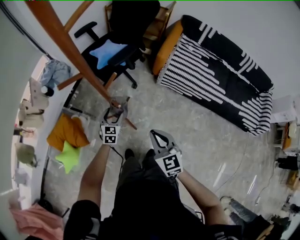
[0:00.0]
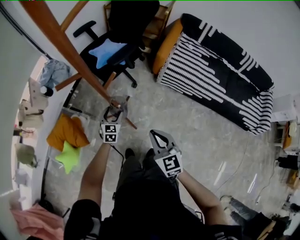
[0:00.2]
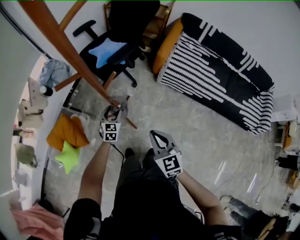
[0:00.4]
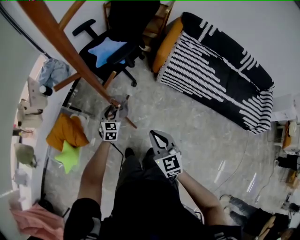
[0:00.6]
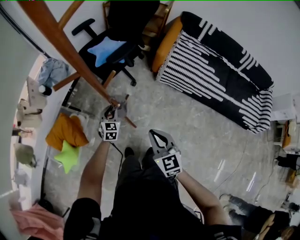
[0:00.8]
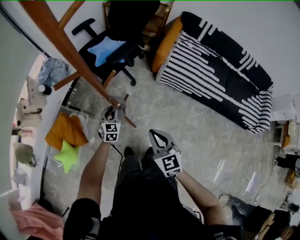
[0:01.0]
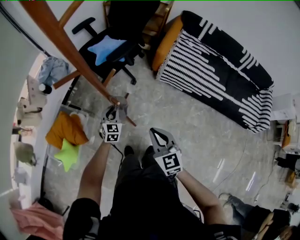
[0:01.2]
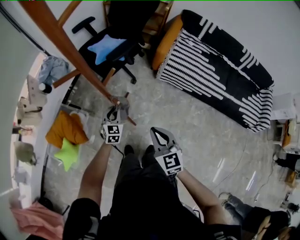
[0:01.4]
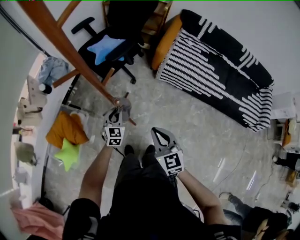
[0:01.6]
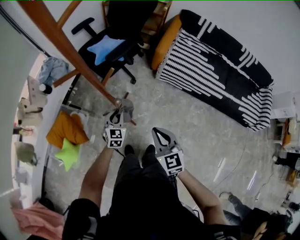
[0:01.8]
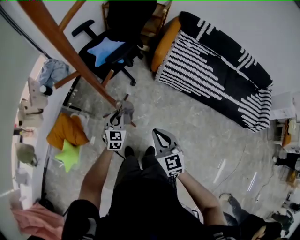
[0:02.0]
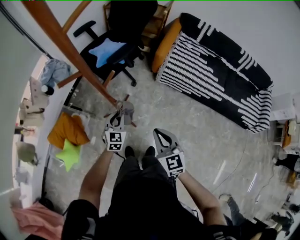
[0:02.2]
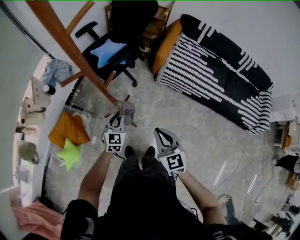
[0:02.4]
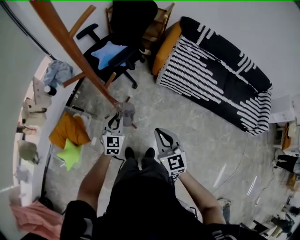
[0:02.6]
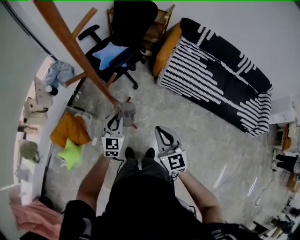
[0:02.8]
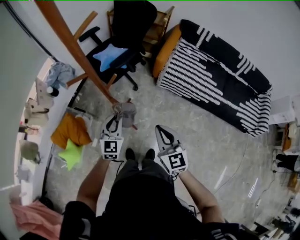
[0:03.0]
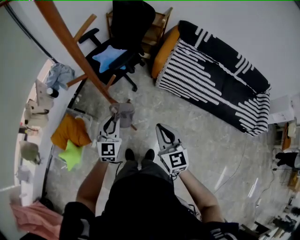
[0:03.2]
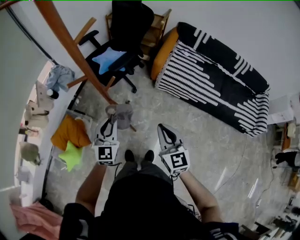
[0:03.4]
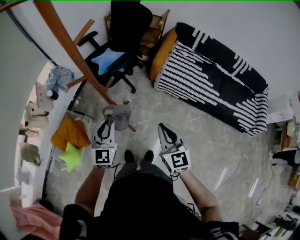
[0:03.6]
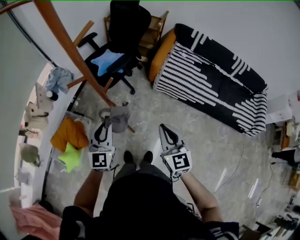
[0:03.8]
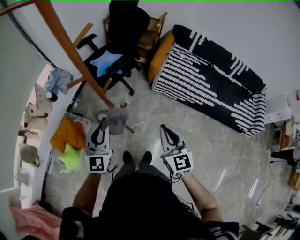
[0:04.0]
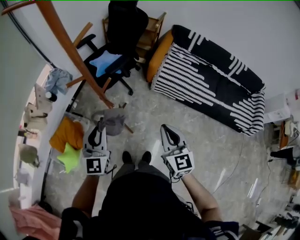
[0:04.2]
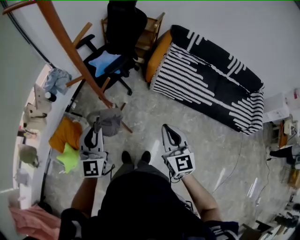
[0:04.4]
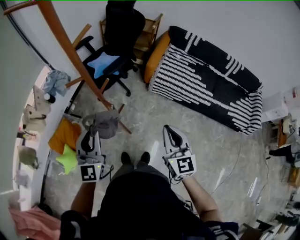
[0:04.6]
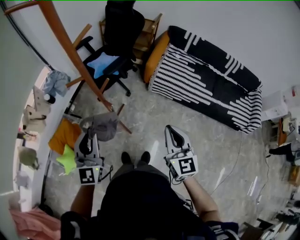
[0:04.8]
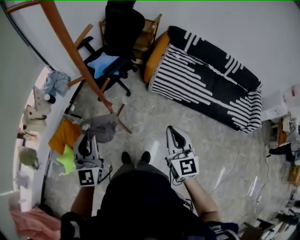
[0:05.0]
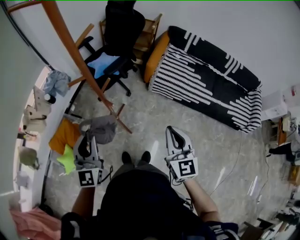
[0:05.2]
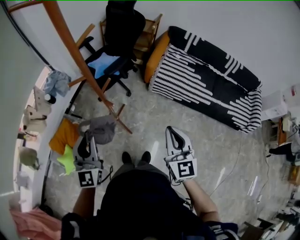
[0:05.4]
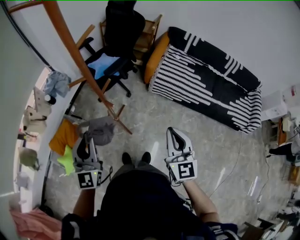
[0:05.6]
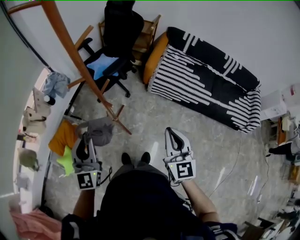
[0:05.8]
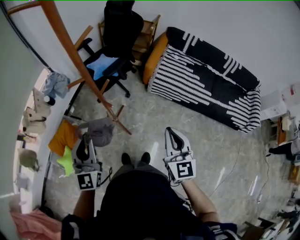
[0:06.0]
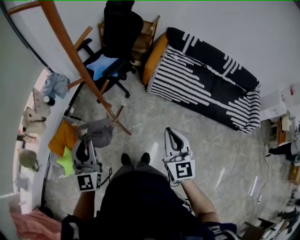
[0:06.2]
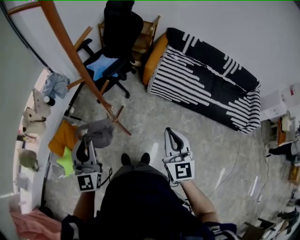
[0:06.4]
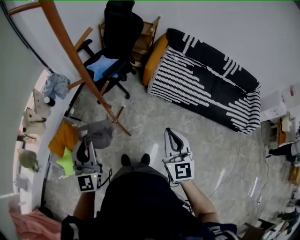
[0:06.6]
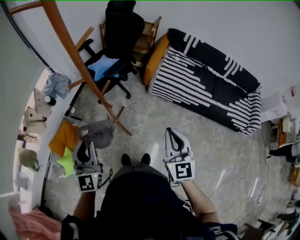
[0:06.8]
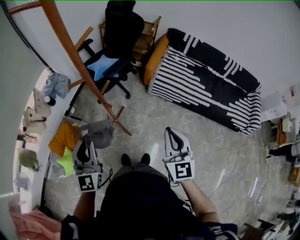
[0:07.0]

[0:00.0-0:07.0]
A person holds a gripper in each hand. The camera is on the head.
0:00.0 to 0:01.4: The left gripper closes.
0:01.4 to 0:02.8: The left gripper goes some 20 cm upward and backward; the right gripper shifts roughly 10 cm upward.
0:02.8 to 0:04.2: The left gripper travels upward by approximately 20 cm. Meanwhile the right gripper goes approximately 10 cm upward and to the right.
0:04.2 to 0:05.6: The left gripper moves to the left and backward, approximately 5 cm. The right gripper shifts roughly 5 cm upward.
0:05.6 to 0:07.0: The two grippers keep their place.

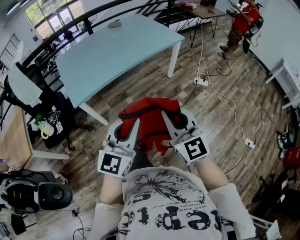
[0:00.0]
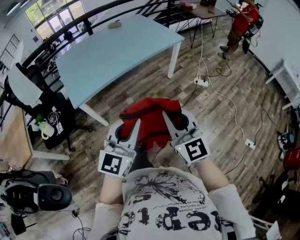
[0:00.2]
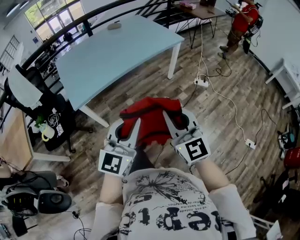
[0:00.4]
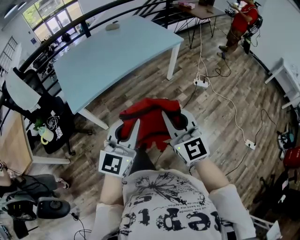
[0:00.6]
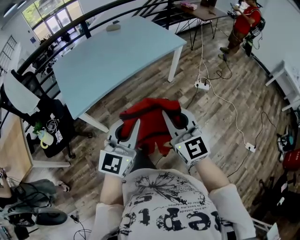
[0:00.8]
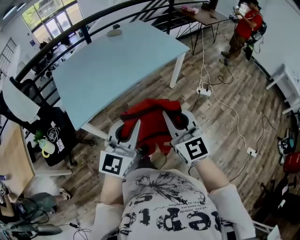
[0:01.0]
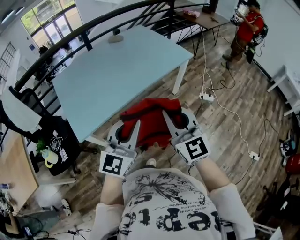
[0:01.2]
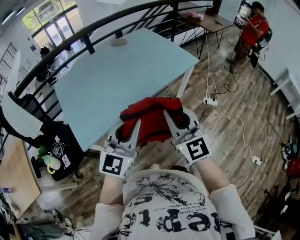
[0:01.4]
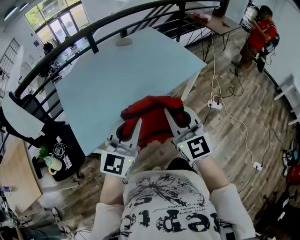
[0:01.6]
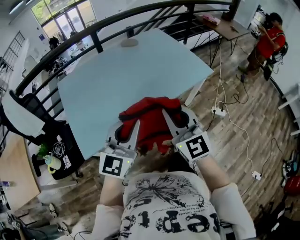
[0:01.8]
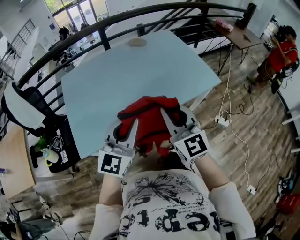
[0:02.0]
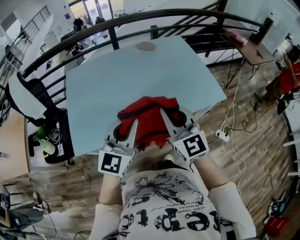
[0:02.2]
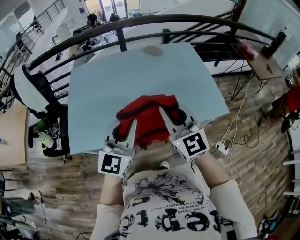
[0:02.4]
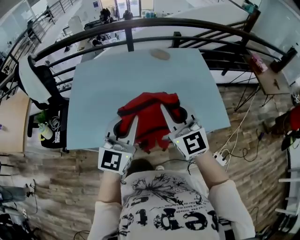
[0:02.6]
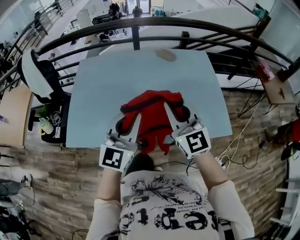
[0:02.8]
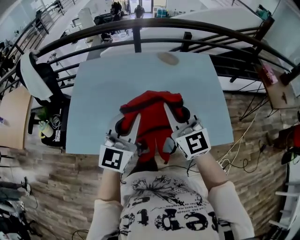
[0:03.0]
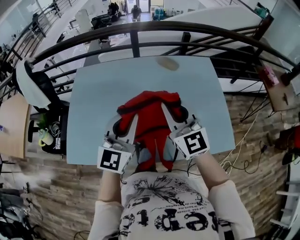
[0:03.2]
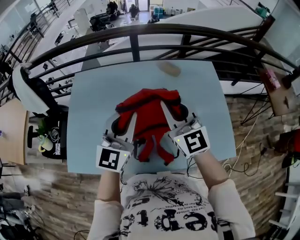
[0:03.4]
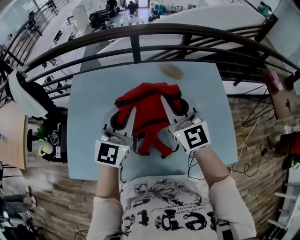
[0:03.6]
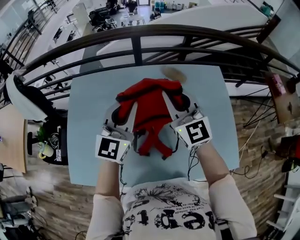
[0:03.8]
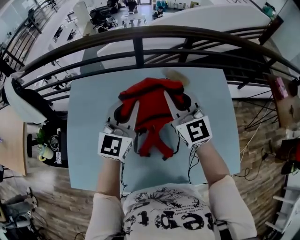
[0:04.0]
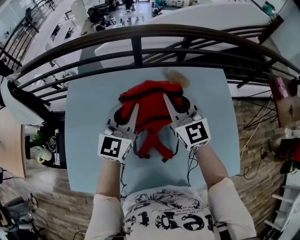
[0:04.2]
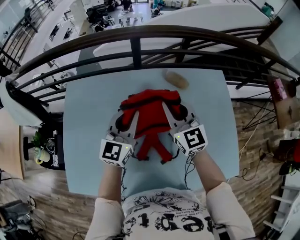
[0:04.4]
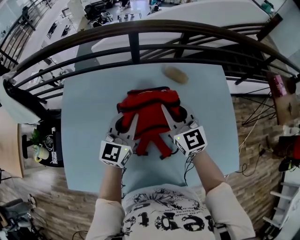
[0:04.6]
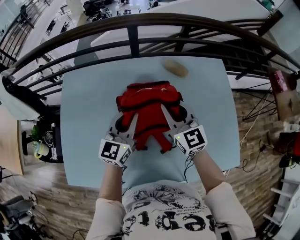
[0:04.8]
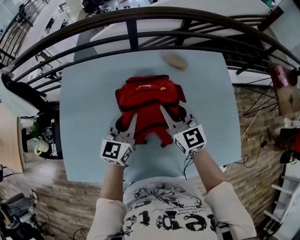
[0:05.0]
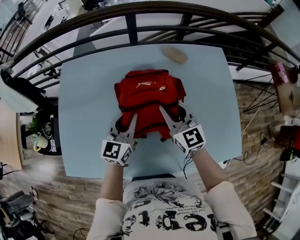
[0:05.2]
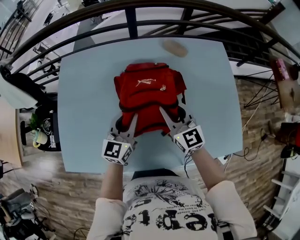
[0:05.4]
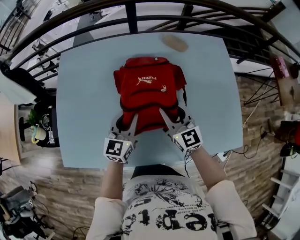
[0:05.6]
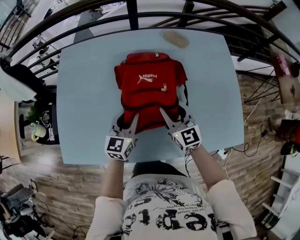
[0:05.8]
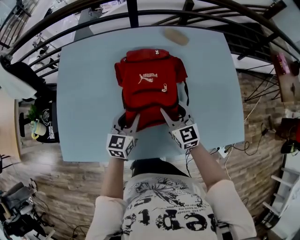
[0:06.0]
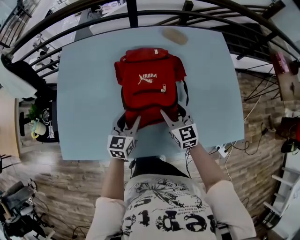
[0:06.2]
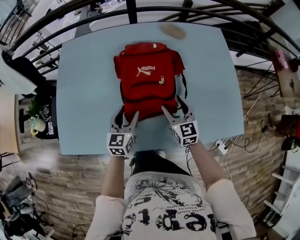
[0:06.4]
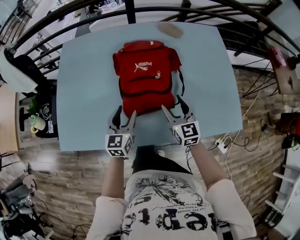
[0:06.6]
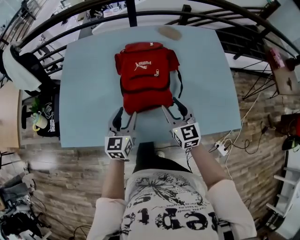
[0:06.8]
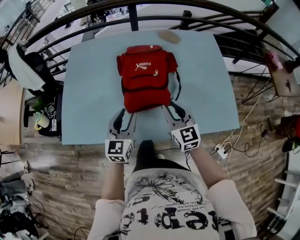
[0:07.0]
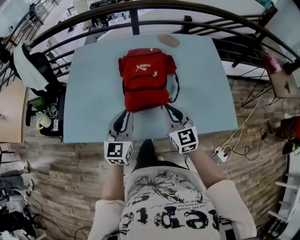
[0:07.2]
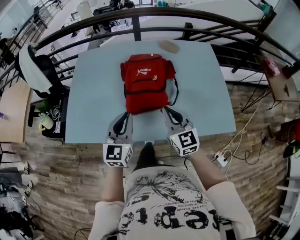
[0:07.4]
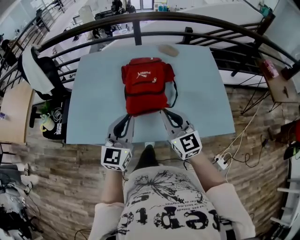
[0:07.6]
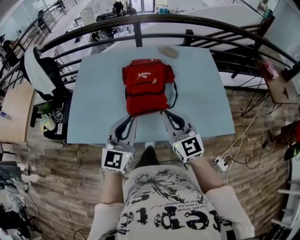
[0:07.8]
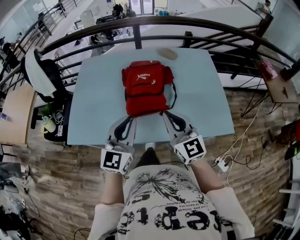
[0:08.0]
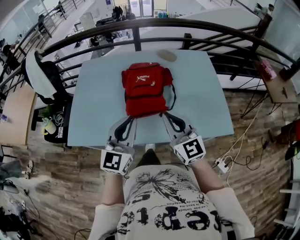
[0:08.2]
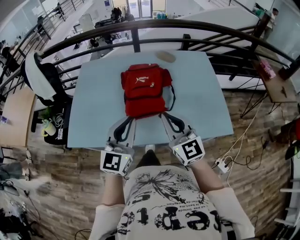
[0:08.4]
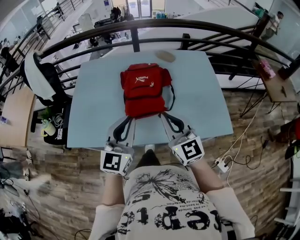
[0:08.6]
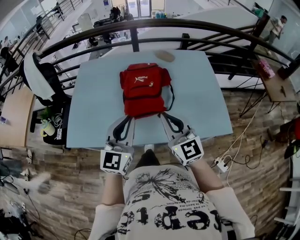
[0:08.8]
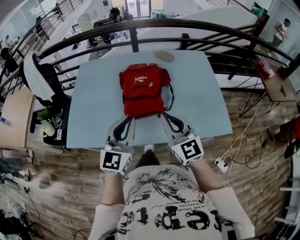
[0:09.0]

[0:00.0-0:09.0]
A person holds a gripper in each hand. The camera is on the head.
0:00.0 to 0:01.6: The grippers both shift forward by some 35 cm.
0:01.6 to 0:03.0: The right gripper moves some 40 cm, and swivels about 30 degrees. The left gripper shifts by roughly 35 cm, and rotates some 30 degrees.
0:03.0 to 0:04.4: Both grippers move forward, about 35 cm.
0:04.4 to 0:06.0: The two grippers go roughly 30 cm downward and backward. The right gripper opens its fingers; the left gripper rotates about 20 degrees.
0:06.0 to 0:07.6: The two grippers go some 30 cm backward and upward. The right gripper closes. Meanwhile the left gripper turns by roughly 20 degrees, and closes up.
0:07.6 to 0:09.0: The left gripper travels upward by approximately 5 cm. Meanwhile the right gripper shifts by some 5 cm.

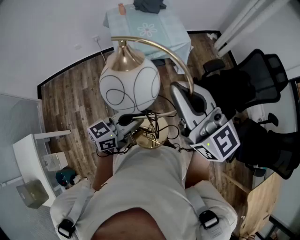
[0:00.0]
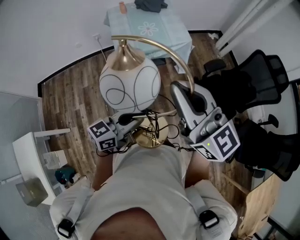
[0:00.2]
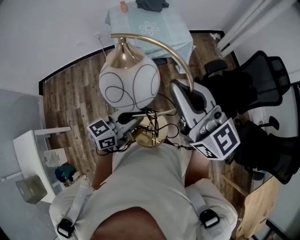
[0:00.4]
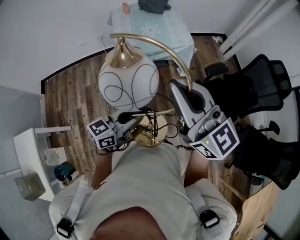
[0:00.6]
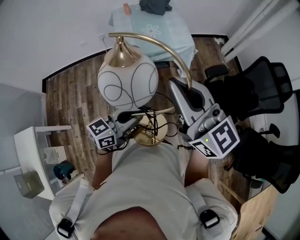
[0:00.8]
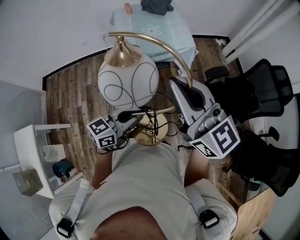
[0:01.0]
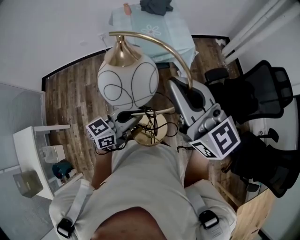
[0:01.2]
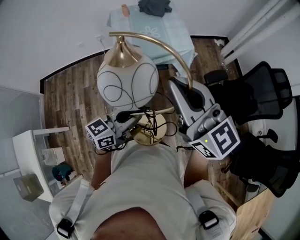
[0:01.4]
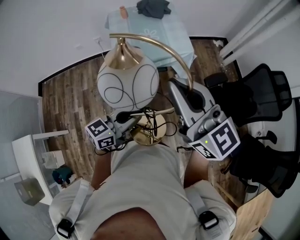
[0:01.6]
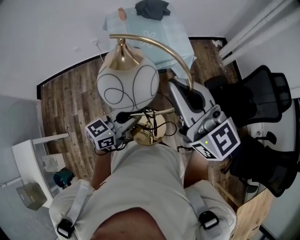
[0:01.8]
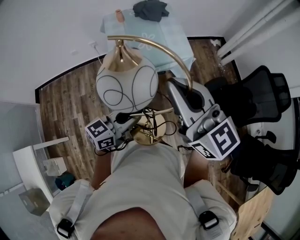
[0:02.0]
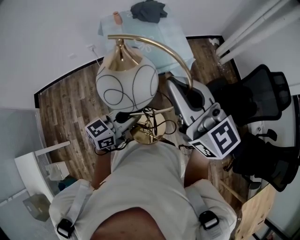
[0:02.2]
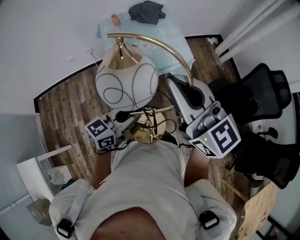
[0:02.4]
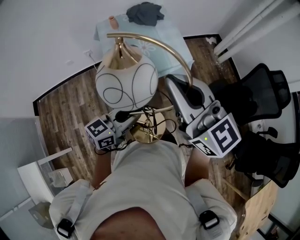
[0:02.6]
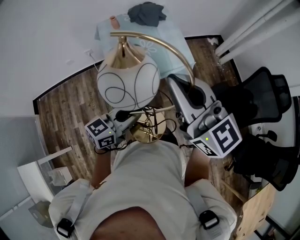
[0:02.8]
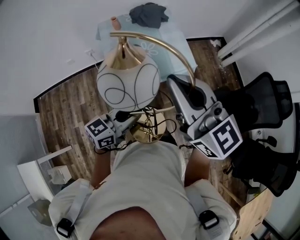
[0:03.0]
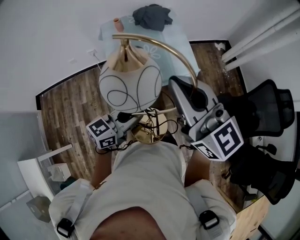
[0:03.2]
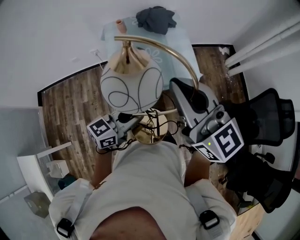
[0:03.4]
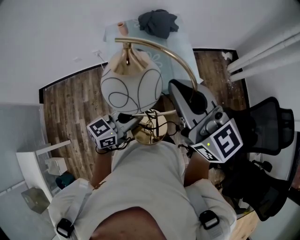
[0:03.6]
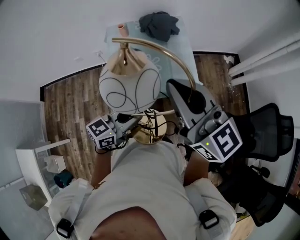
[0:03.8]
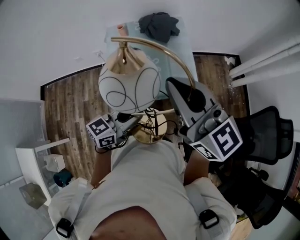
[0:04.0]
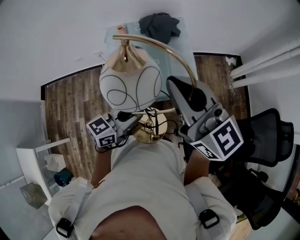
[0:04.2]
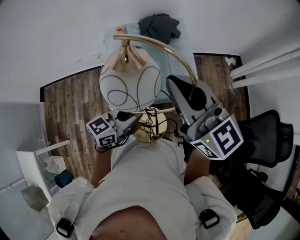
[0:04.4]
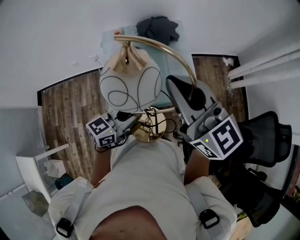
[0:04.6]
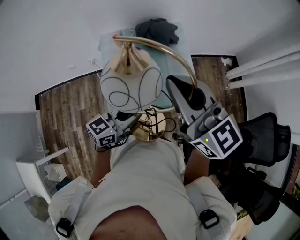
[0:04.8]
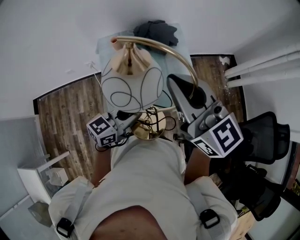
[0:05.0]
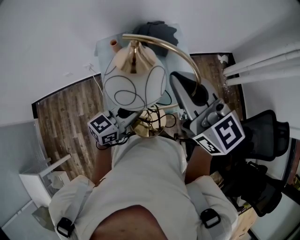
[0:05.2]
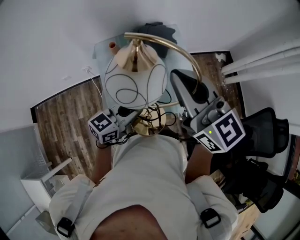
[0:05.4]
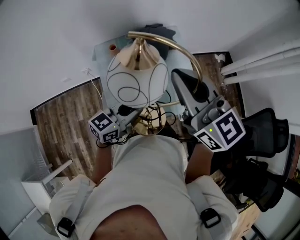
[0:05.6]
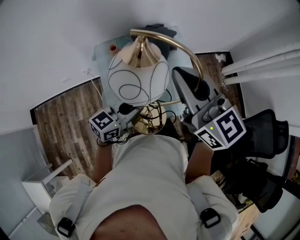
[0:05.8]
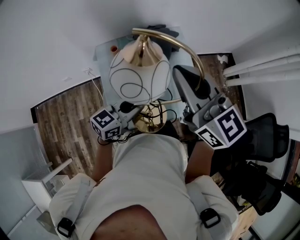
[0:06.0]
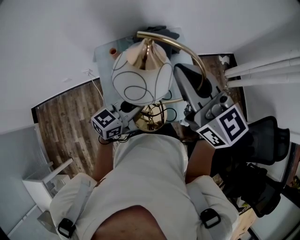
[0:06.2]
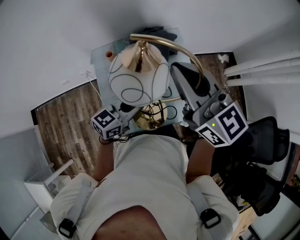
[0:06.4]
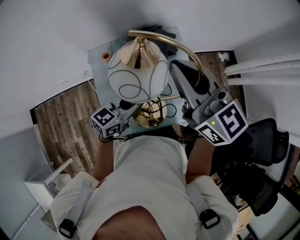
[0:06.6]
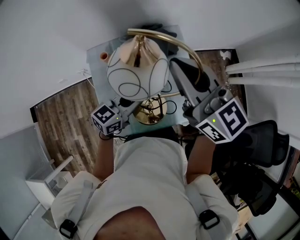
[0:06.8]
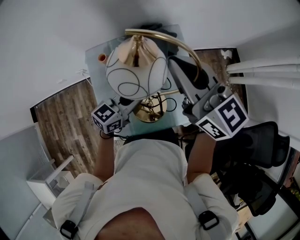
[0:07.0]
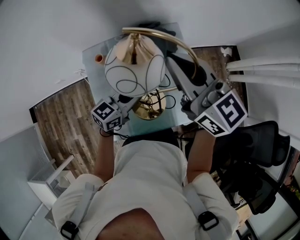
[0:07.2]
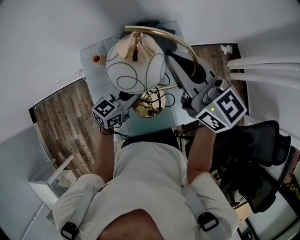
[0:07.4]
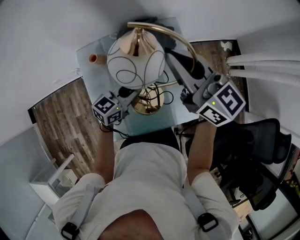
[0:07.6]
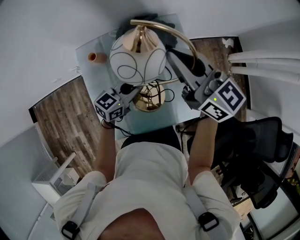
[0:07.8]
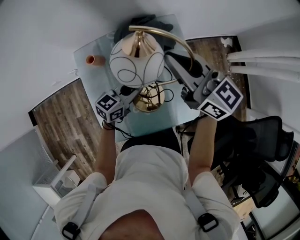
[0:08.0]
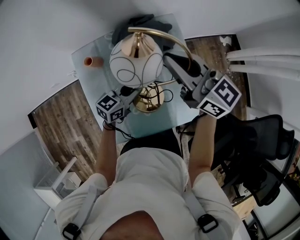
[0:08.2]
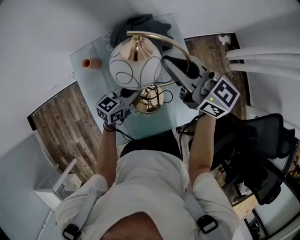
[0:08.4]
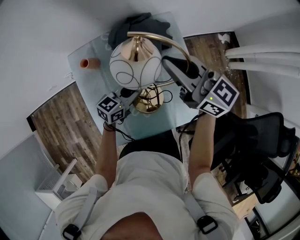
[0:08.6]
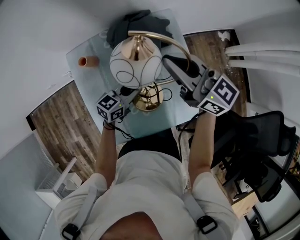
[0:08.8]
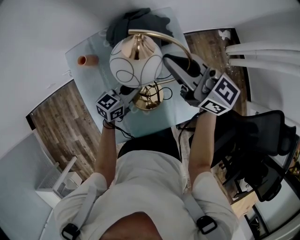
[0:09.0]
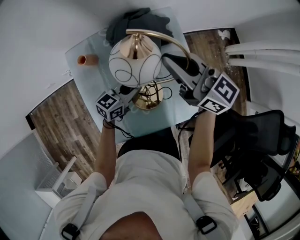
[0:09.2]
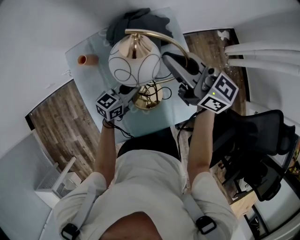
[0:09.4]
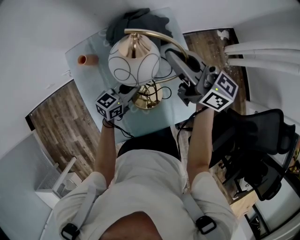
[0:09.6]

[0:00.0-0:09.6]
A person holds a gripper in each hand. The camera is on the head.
0:00.0 to 0:01.6: The grippers both shift forward by approximately 10 cm.
0:01.6 to 0:03.2: Both grippers travel together forward, about 20 cm.
0:03.2 to 0:04.8: Both grippers move forward, roughly 20 cm.
0:04.8 to 0:06.4: The grippers both shift forward by approximately 15 cm.
0:06.4 to 0:08.0: Both grippers move downward and forward, roughly 20 cm.
0:08.0 to 0:09.6: The right gripper moves approximately 5 cm; the left gripper is displaced downward by about 5 cm.
